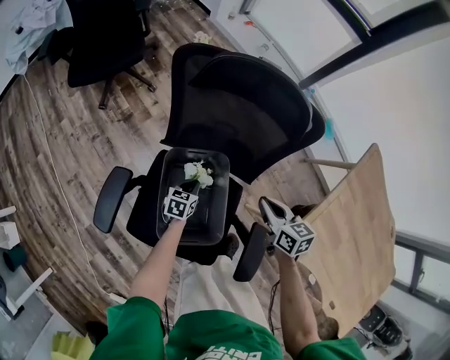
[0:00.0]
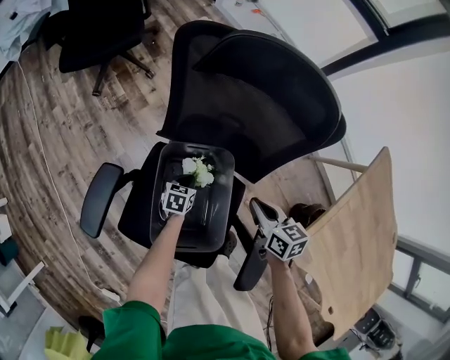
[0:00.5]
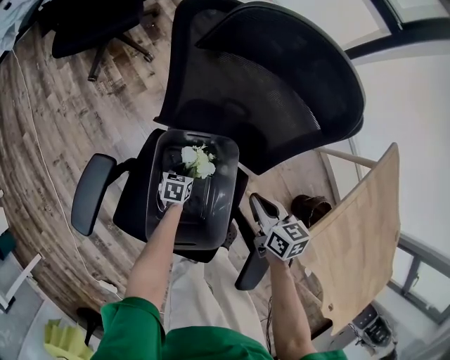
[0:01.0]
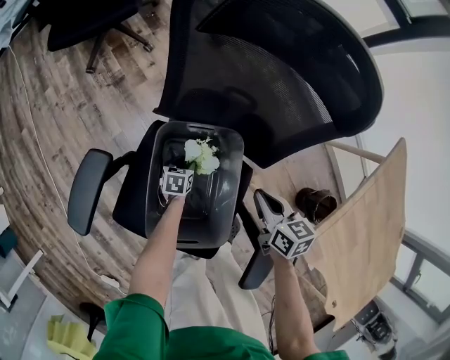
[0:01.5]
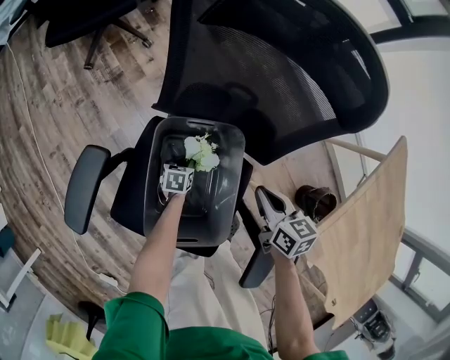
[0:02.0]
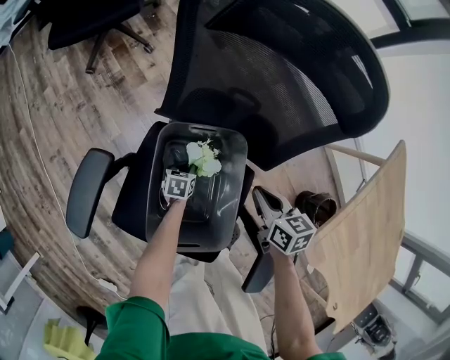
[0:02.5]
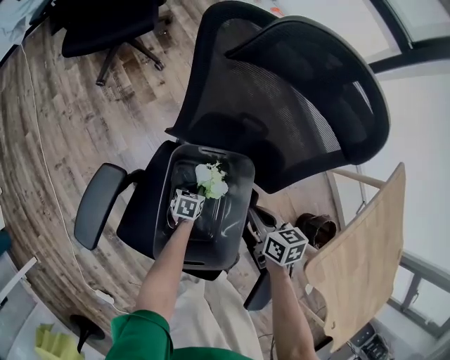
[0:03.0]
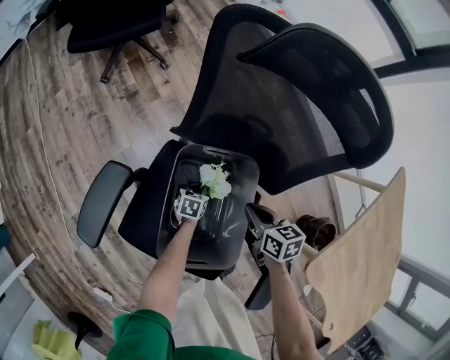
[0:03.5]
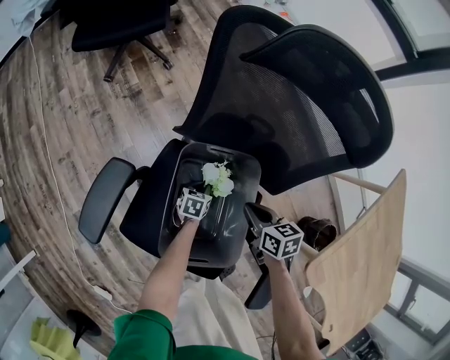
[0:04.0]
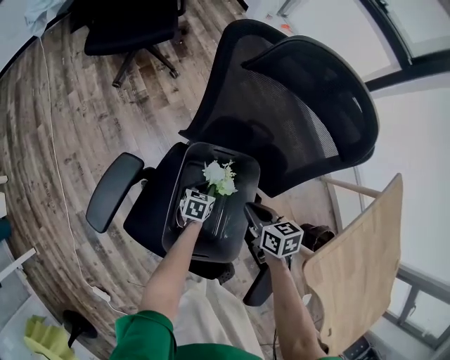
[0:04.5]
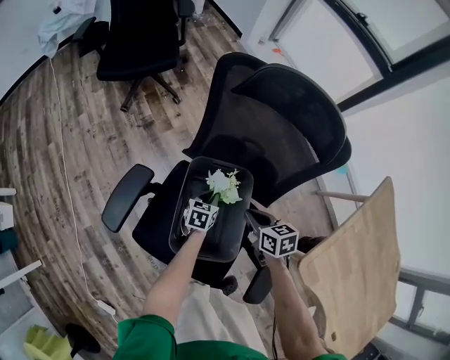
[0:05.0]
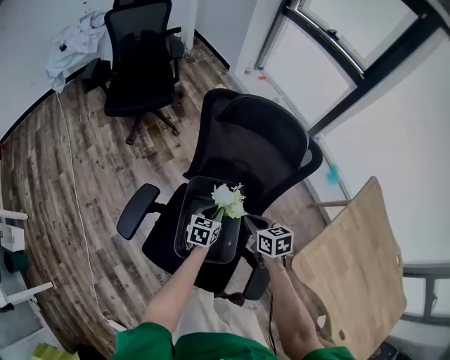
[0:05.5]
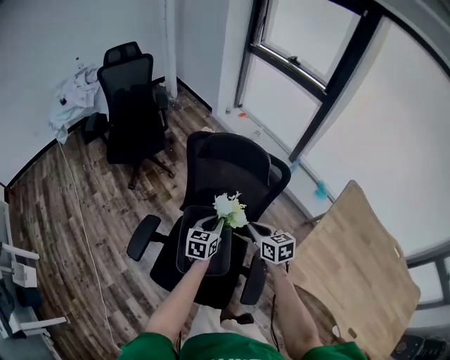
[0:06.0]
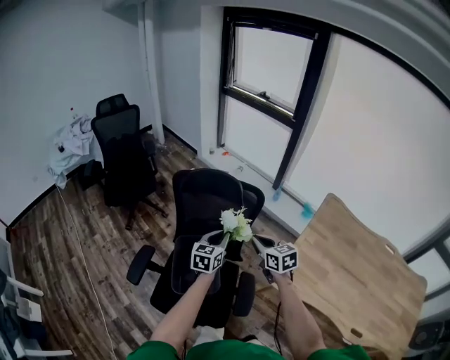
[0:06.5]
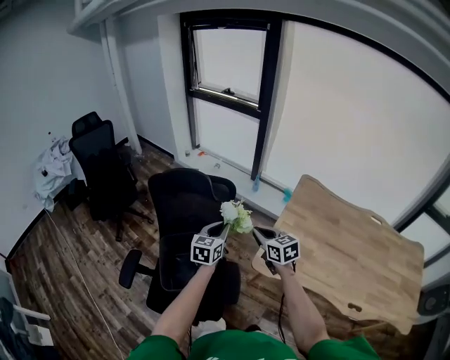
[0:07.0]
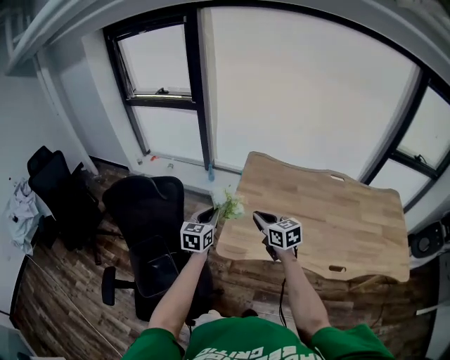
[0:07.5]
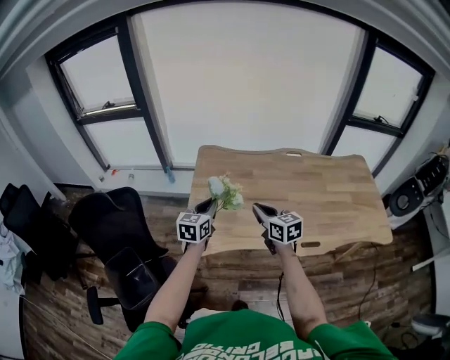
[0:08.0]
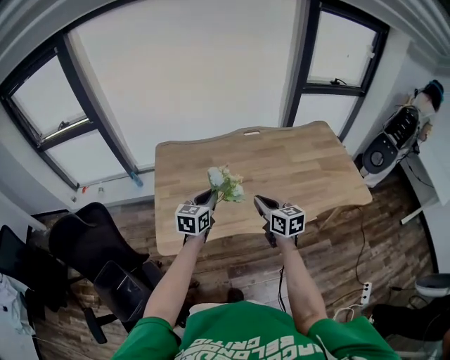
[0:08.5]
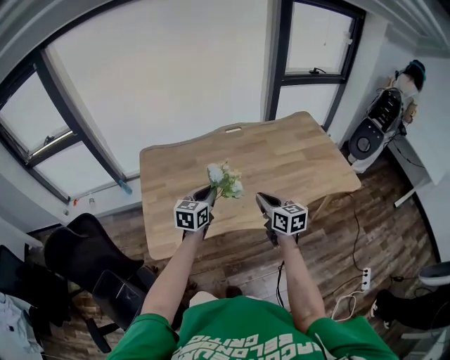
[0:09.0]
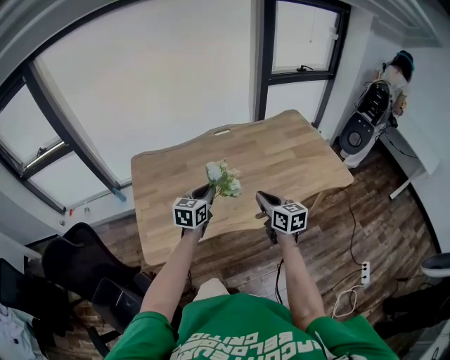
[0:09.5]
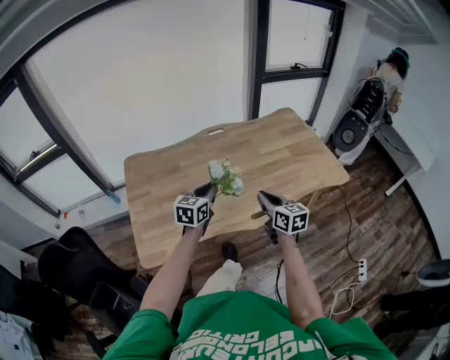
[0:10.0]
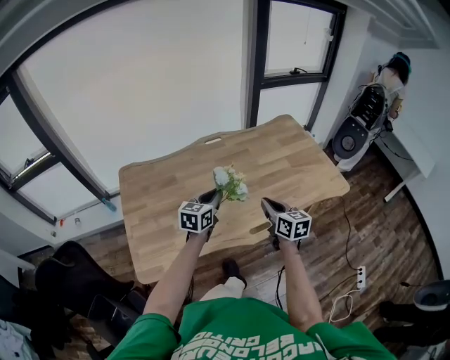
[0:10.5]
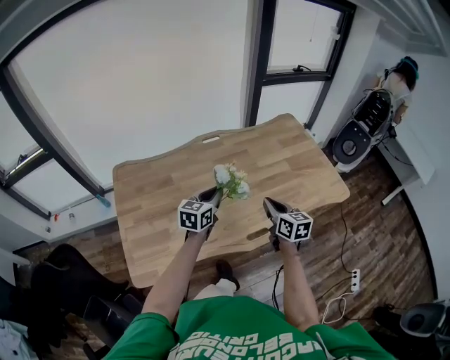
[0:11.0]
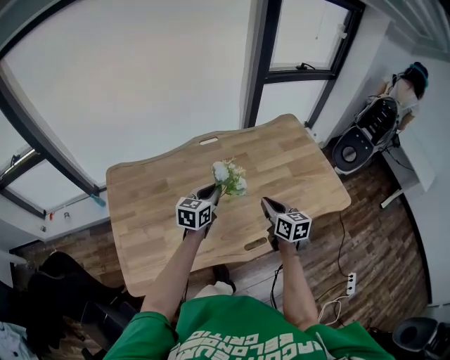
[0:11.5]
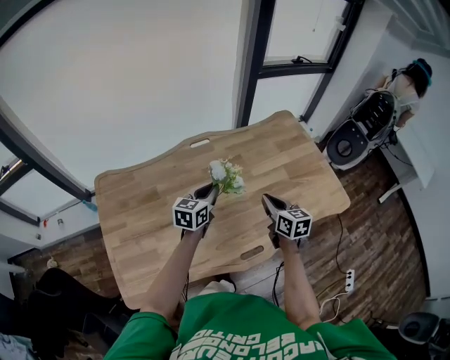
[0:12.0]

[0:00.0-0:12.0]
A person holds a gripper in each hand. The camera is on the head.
0:00.0 to 0:02.0: The right gripper is displaced downward by roughly 10 cm; the left gripper moves downward, approximately 20 cm.
0:02.0 to 0:04.0: The right gripper is displaced to the left and downward by approximately 10 cm.
0:04.0 to 0:06.0: The left gripper heads upward, covering roughly 40 cm, and swivels roughly 30 degrees; the right gripper travels upward by some 30 cm, and turns by some 20 degrees.
0:06.0 to 0:08.0: Both grippers are carried about 60 cm. The right gripper rotates approximately 50 degrees; the left gripper turns by roughly 50 degrees.
0:08.0 to 0:10.0: The left gripper changes place by about 30 cm, and turns by roughly 30 degrees, while the right gripper shifts by roughly 30 cm, and rotates about 30 degrees.
0:10.0 to 0:12.0: The two grippers go approximately 25 cm forward.

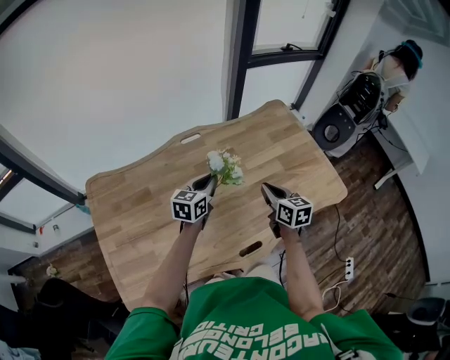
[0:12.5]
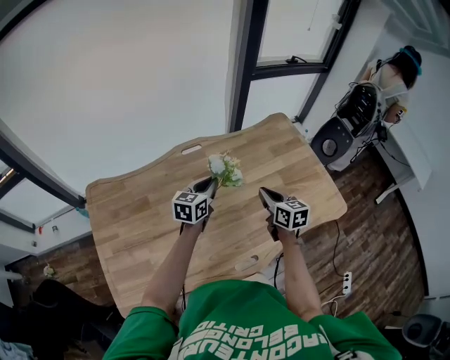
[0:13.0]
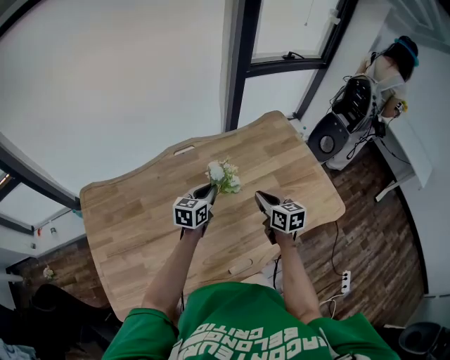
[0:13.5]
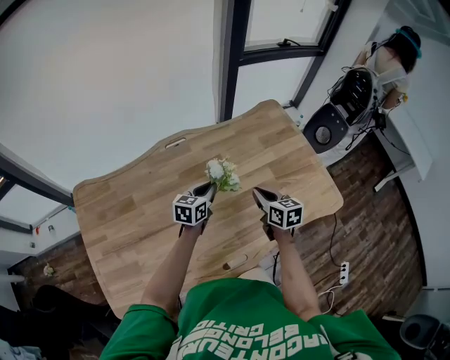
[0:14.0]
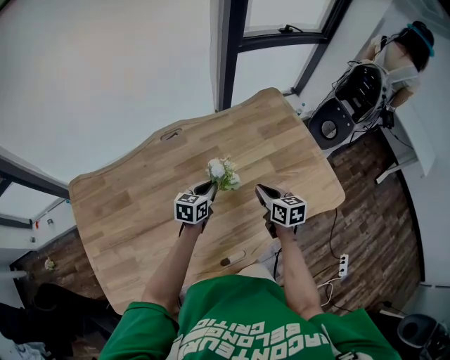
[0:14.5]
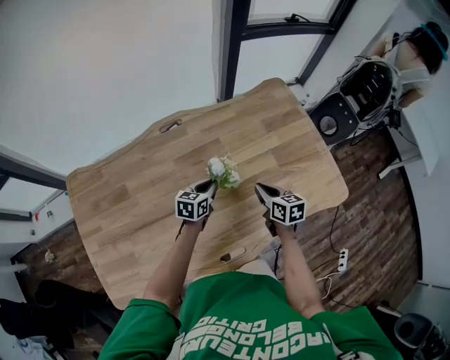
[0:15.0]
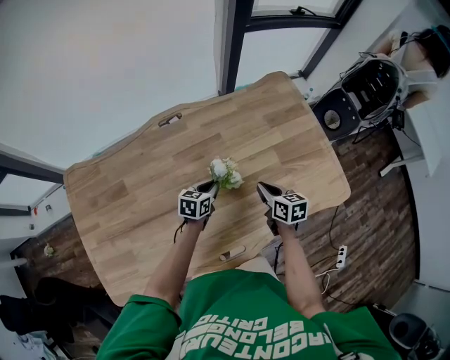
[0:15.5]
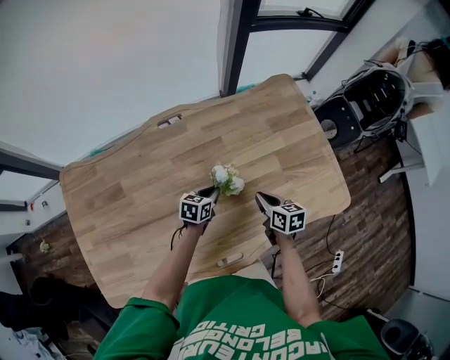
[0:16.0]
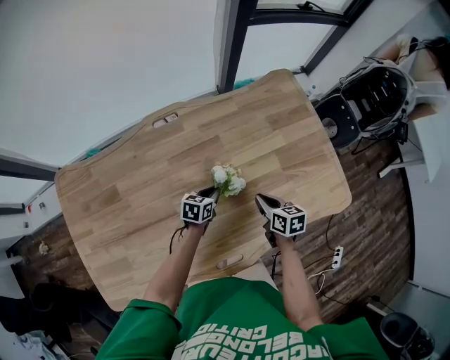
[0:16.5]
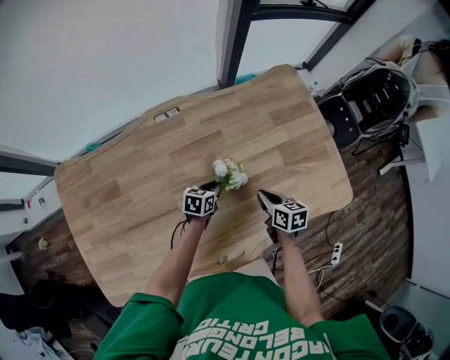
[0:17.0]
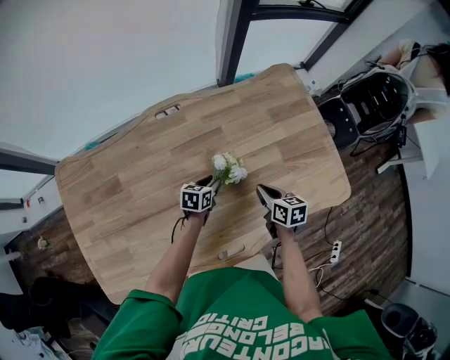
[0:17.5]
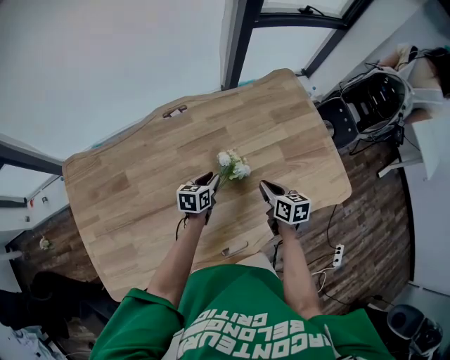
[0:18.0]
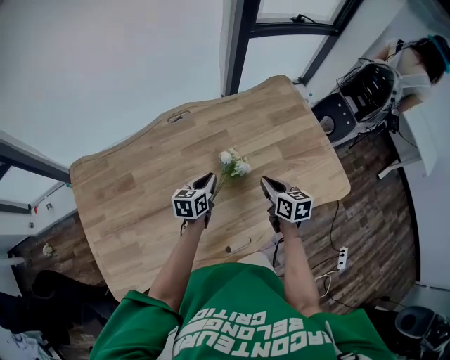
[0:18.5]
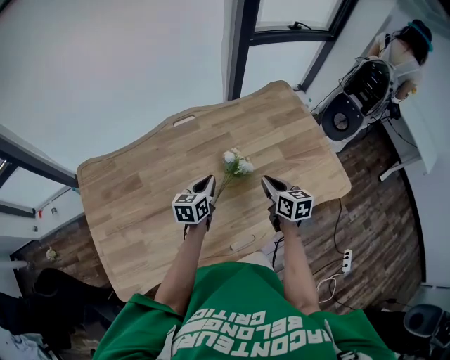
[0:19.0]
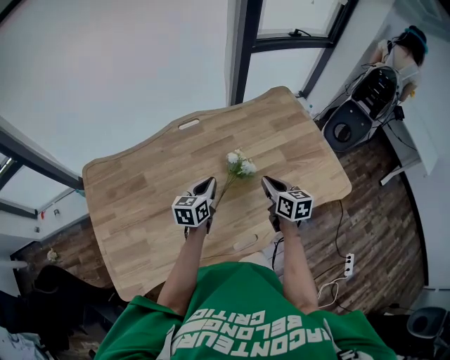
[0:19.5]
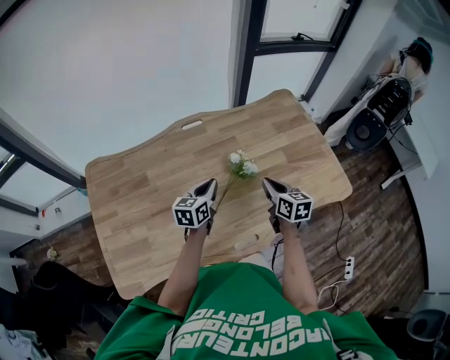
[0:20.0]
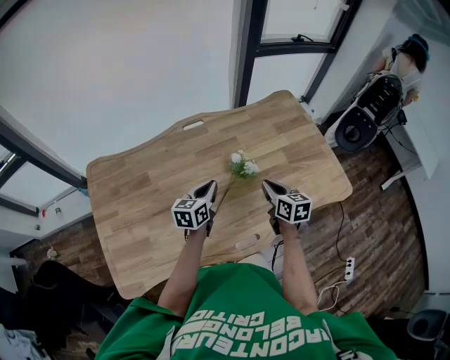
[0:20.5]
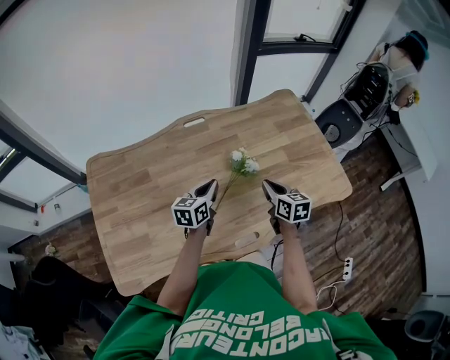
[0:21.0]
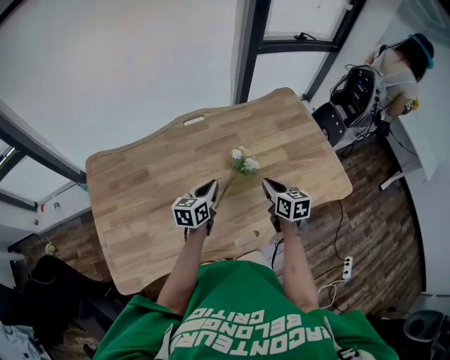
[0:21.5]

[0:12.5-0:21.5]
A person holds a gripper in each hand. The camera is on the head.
0:12.5 to 0:14.5: The right gripper shifts some 15 cm downward, forward and to the right, while the left gripper goes about 15 cm downward, to the right and forward.
0:14.5 to 0:17.0: The right gripper is displaced downward by about 10 cm. Meanwhile the left gripper heads downward, covering some 15 cm.
0:17.0 to 0:19.5: The right gripper travels upward and backward by roughly 15 cm; the left gripper goes about 25 cm upward, backward and to the left, and swivels roughly 30 degrees.
0:19.5 to 0:21.5: There are only small adjustments of the grippers.

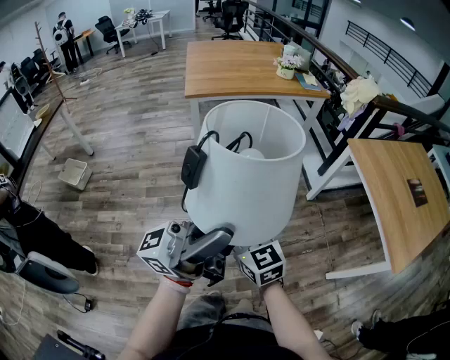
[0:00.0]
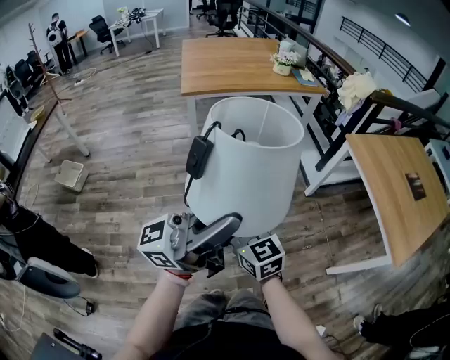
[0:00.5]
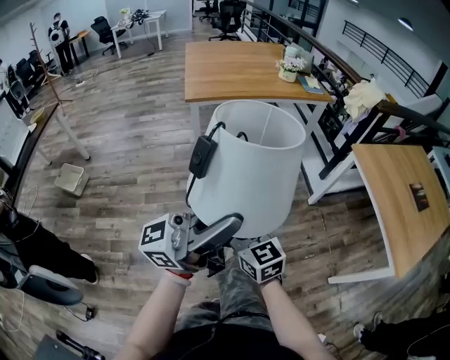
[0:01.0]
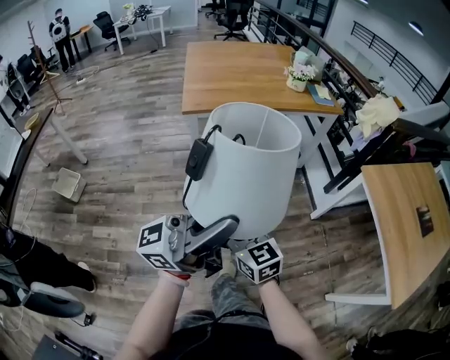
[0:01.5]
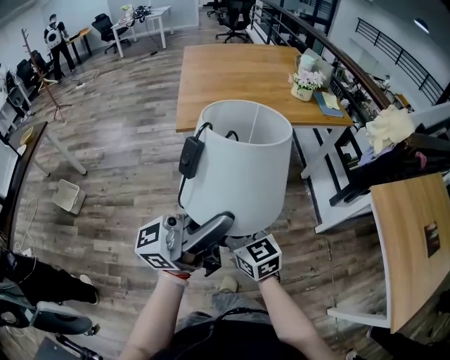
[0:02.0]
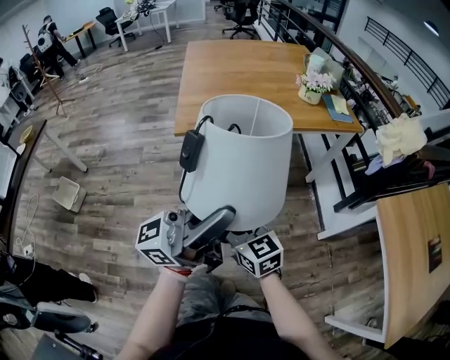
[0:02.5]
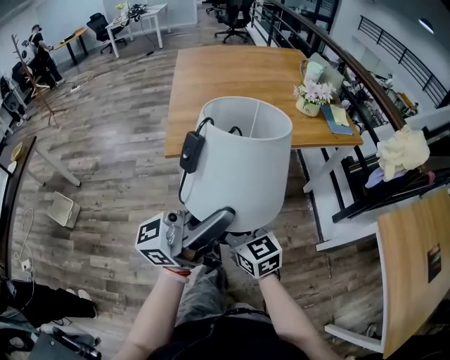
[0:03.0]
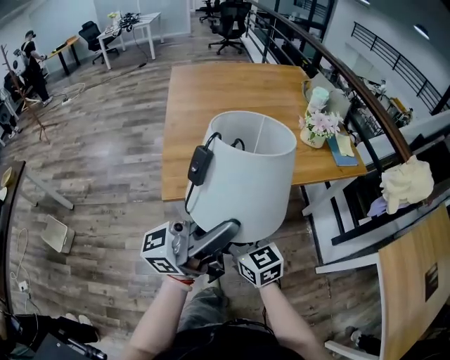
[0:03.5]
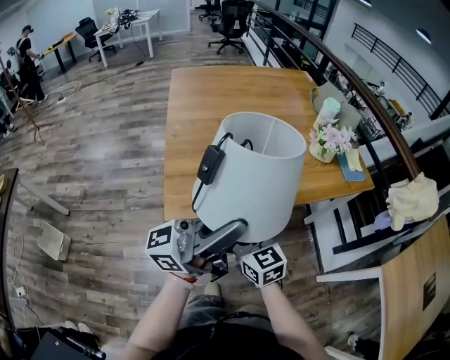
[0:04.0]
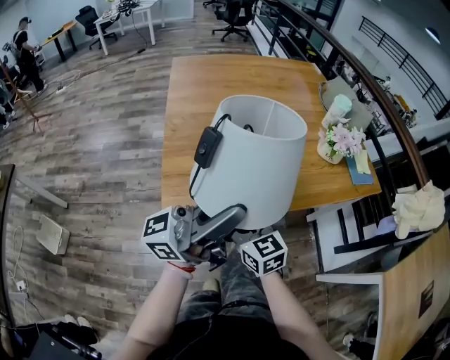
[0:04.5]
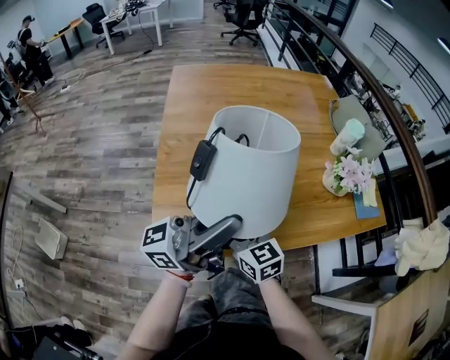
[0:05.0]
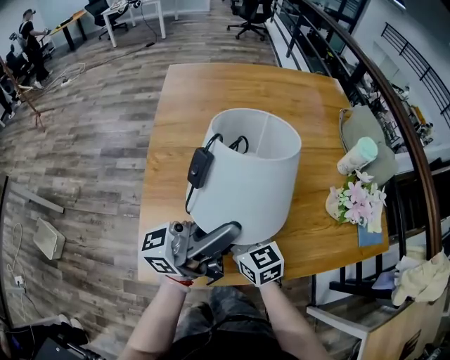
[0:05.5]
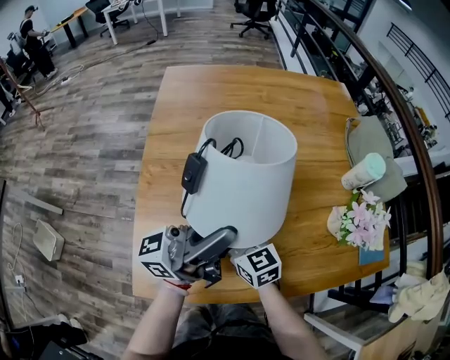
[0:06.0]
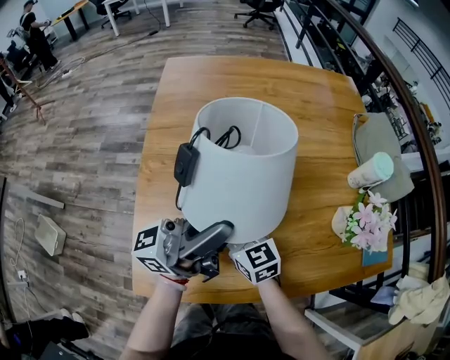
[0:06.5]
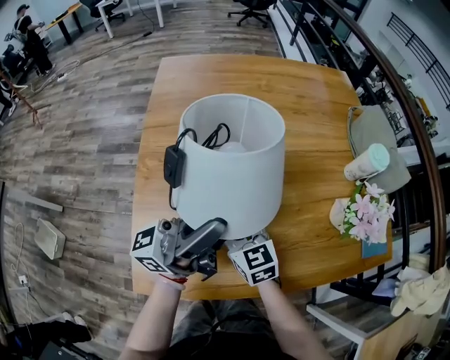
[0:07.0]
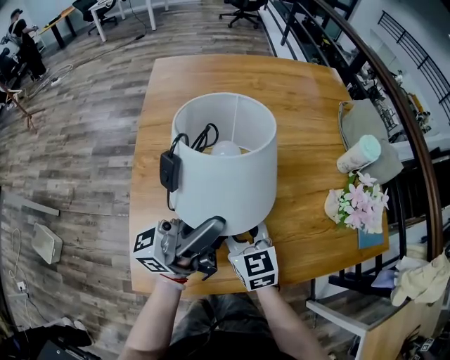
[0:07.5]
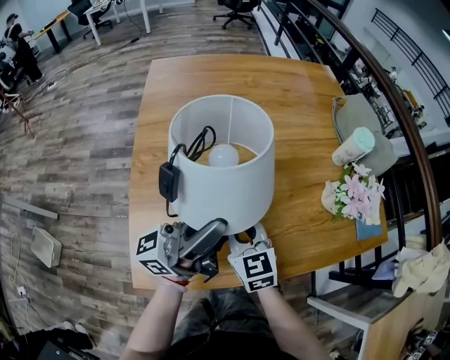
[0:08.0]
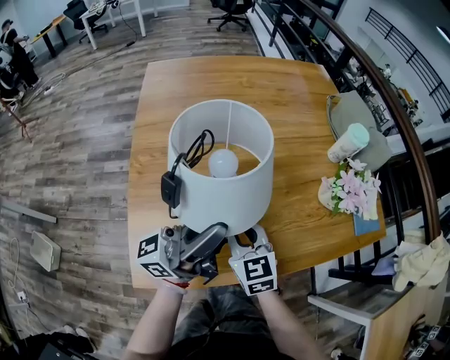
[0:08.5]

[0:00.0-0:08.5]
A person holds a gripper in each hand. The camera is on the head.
0:00.0 to 0:02.0: The grippers both shift forward by roughly 30 cm.
0:02.0 to 0:04.0: The grippers both shift forward by roughly 35 cm.
0:04.0 to 0:06.5: Both grippers travel together forward, about 35 cm.
0:06.5 to 0:08.5: The left gripper is displaced backward by about 5 cm, while the right gripper moves backward and to the right, about 10 cm, and closes up.
